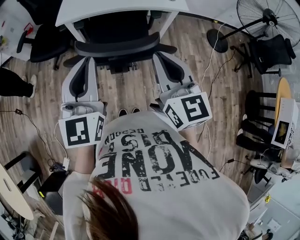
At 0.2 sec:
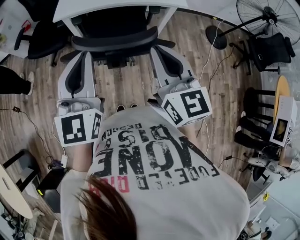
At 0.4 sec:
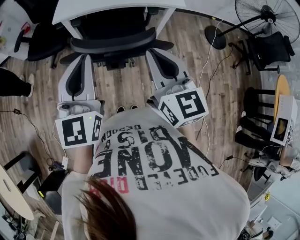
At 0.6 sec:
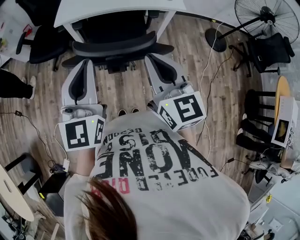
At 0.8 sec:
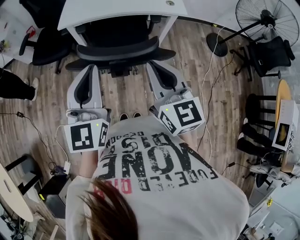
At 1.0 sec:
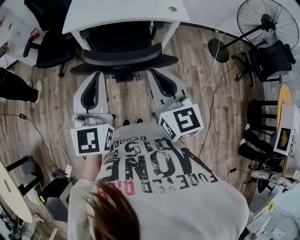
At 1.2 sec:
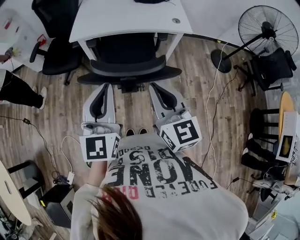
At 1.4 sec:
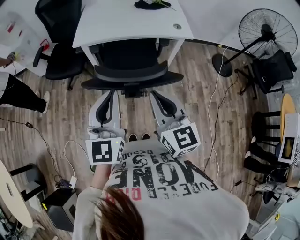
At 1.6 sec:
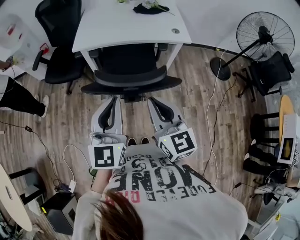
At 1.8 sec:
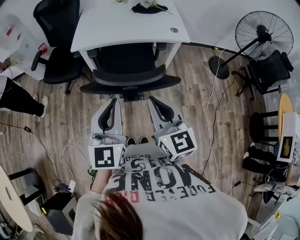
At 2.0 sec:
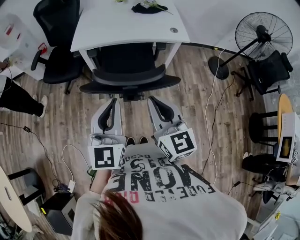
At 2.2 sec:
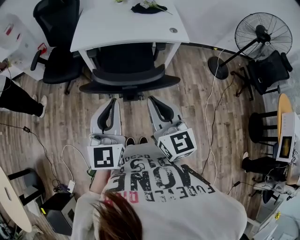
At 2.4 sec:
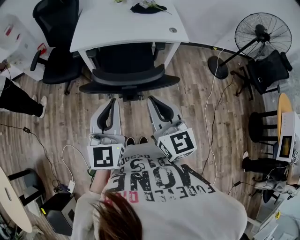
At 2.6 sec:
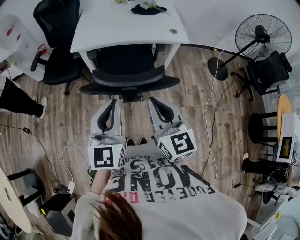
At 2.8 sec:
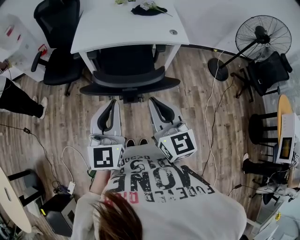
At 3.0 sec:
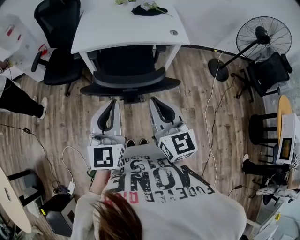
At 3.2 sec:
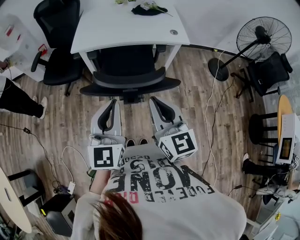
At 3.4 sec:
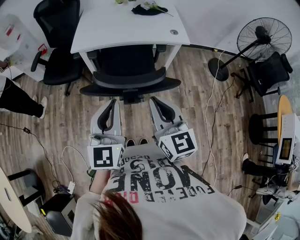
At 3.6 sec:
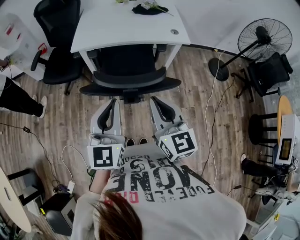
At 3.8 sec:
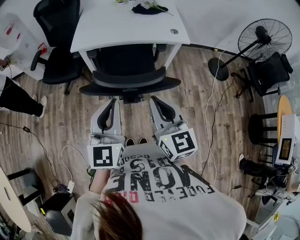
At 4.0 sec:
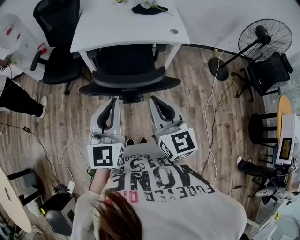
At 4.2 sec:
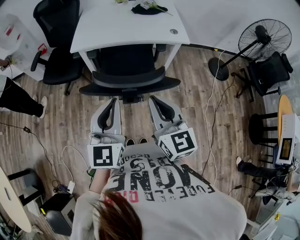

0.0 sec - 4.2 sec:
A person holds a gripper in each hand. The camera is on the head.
0.0 sec - 1.4 sec: The right gripper ends up roughly 5 cm from where it was.
1.4 sec - 2.8 sec: There are only small adjustments of the grippers.
2.8 sec - 4.2 sec: Both grippers stay put.

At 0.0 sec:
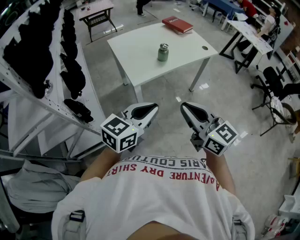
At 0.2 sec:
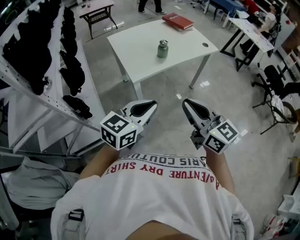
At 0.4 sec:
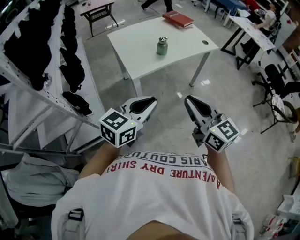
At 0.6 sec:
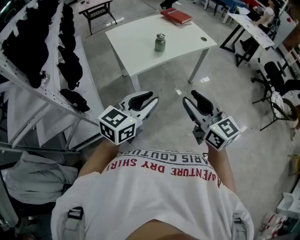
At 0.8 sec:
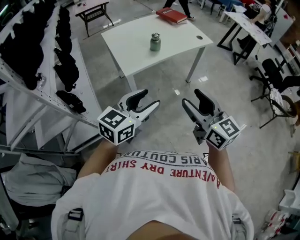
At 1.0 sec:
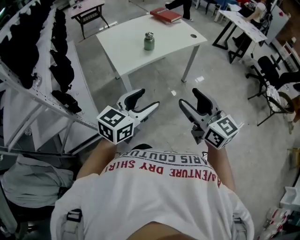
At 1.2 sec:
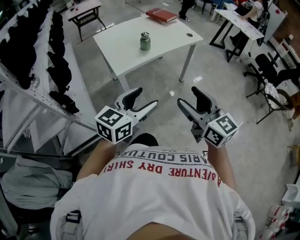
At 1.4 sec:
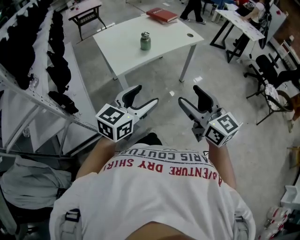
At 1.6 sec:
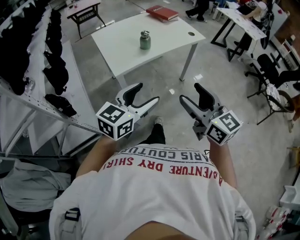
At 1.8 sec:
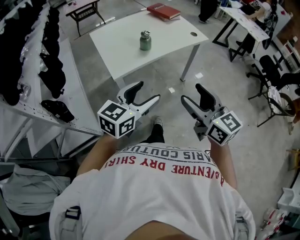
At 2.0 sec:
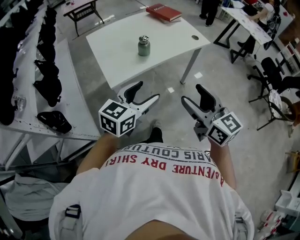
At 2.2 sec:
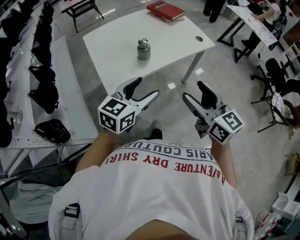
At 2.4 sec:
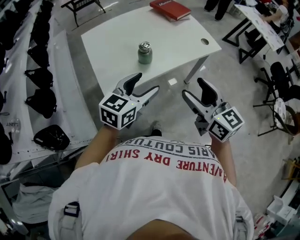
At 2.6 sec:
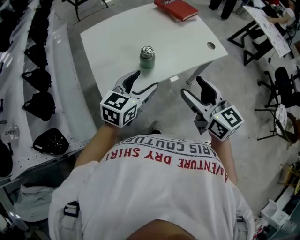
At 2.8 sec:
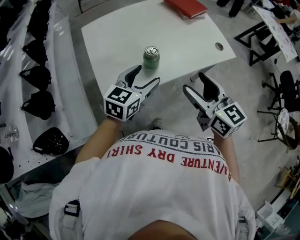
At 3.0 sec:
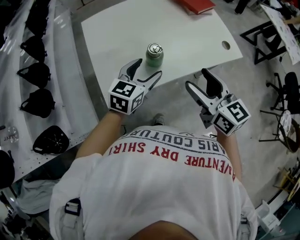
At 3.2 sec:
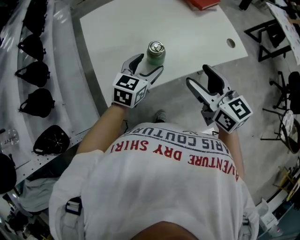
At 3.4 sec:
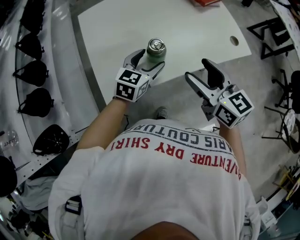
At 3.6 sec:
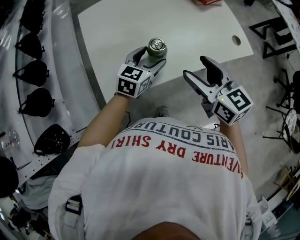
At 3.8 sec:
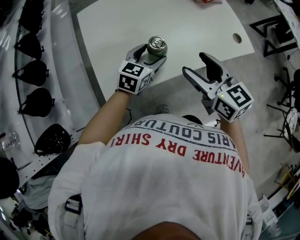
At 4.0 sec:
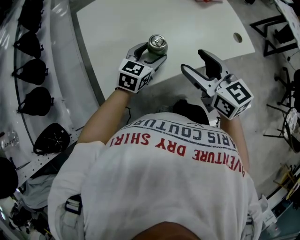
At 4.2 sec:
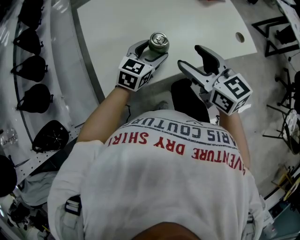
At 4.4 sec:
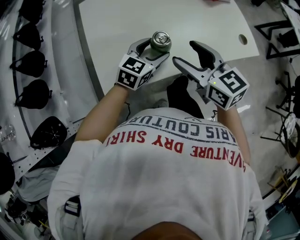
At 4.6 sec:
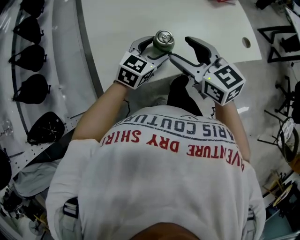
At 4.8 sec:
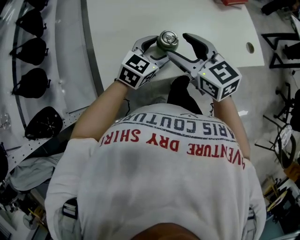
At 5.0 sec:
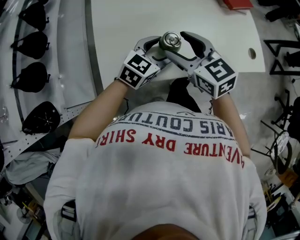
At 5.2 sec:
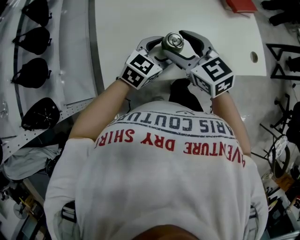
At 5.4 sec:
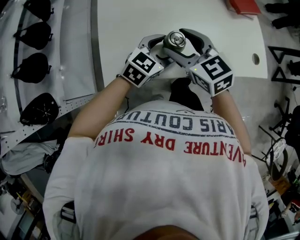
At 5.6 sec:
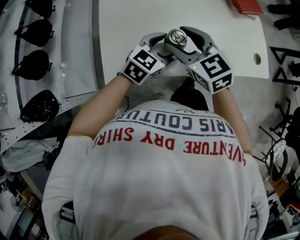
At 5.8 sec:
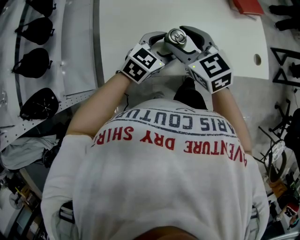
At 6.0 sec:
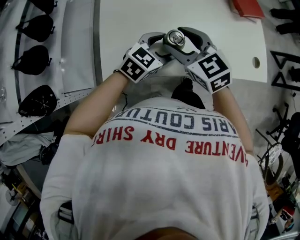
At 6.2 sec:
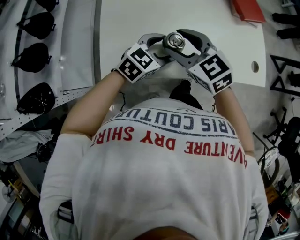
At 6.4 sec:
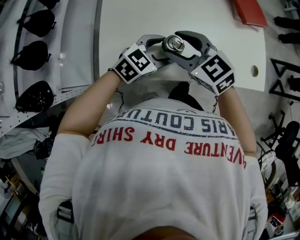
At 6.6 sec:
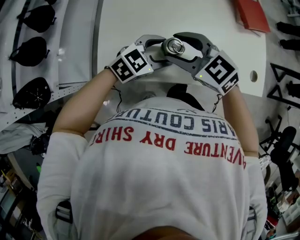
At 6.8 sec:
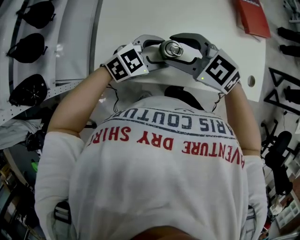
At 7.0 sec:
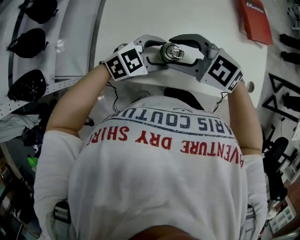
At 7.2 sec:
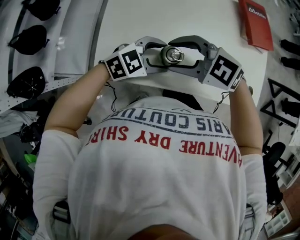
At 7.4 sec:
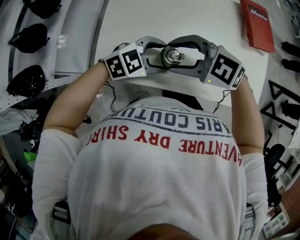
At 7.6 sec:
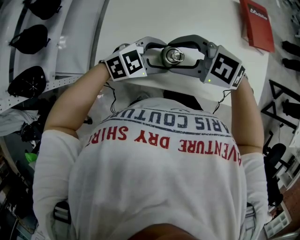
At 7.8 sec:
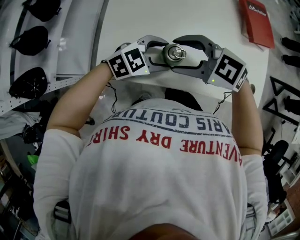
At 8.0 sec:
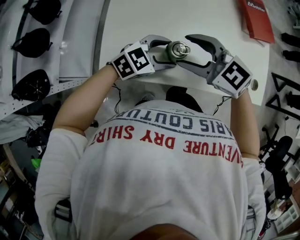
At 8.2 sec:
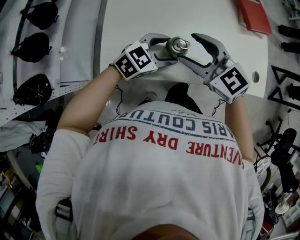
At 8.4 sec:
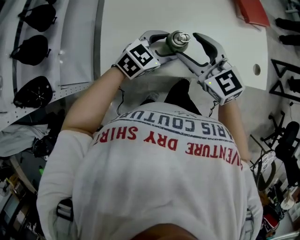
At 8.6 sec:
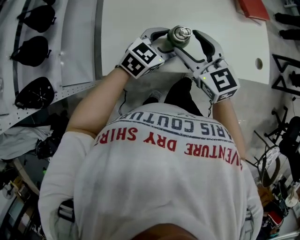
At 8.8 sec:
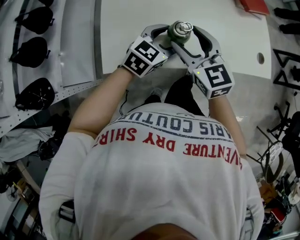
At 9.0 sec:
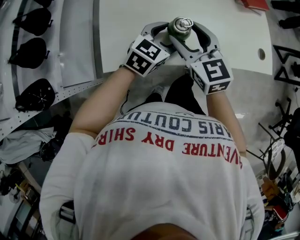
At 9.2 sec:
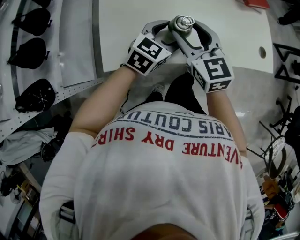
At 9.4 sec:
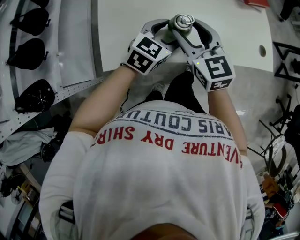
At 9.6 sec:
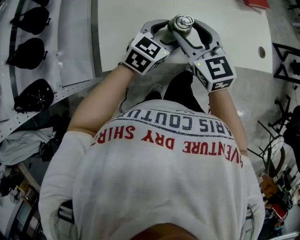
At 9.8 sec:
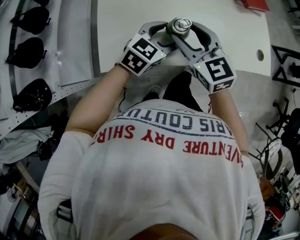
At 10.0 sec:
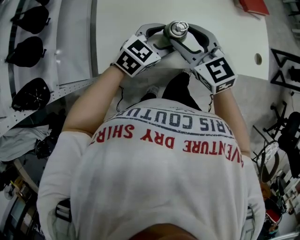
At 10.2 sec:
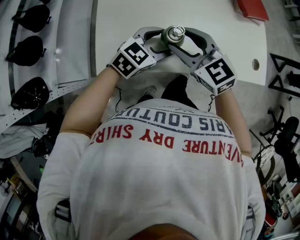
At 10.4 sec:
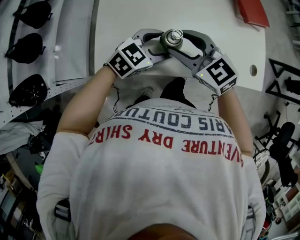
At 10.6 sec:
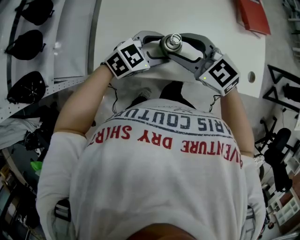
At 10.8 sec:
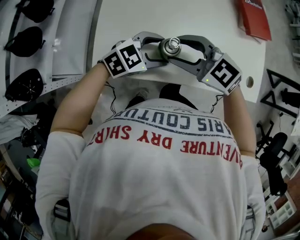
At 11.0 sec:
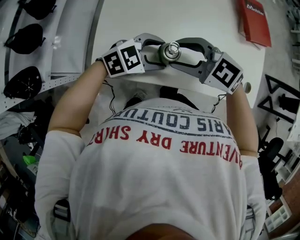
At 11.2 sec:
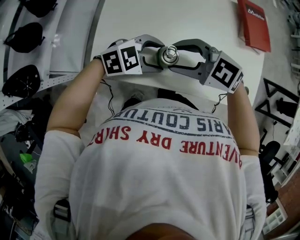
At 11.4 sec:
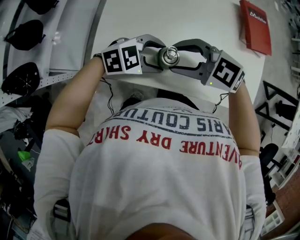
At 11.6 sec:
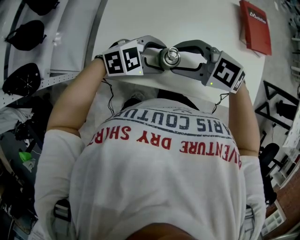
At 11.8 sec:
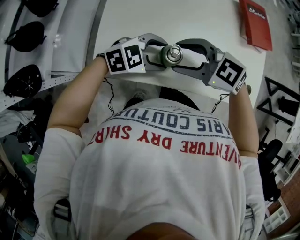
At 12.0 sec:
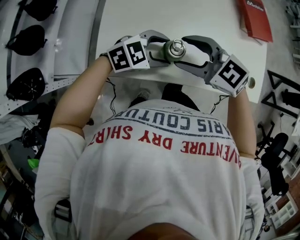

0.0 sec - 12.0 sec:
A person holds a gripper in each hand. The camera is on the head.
0.0 sec - 1.6 sec: The two grippers go roughly 10 cm to the right. The right gripper opens its fingers, while the left gripper opens.
1.6 sec - 3.0 sec: The grippers both shift forward by roughly 40 cm. The left gripper changes its angle by roughly 20 degrees.
3.0 sec - 4.4 sec: The right gripper shifts approximately 10 cm forward and to the left, while the left gripper moves downward and forward, some 10 cm.
4.4 sec - 6.0 sec: The right gripper shifts some 5 cm to the left, and rotates some 30 degrees.
6.0 sec - 7.6 sec: The right gripper changes its angle by some 50 degrees.
7.6 sec - 9.0 sec: The left gripper changes its angle by roughly 20 degrees. Meanwhile the right gripper rotates approximately 70 degrees.
9.0 sec - 10.4 sec: The right gripper rotates approximately 30 degrees.

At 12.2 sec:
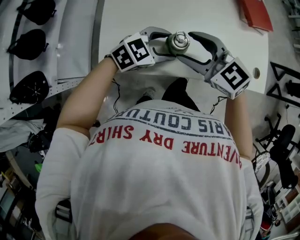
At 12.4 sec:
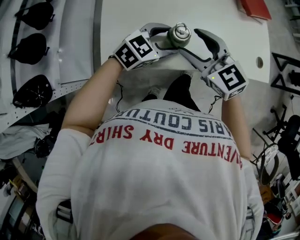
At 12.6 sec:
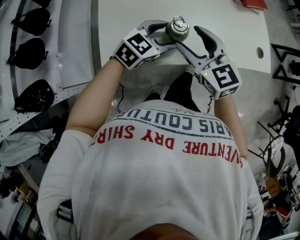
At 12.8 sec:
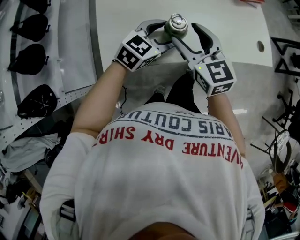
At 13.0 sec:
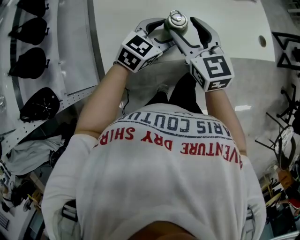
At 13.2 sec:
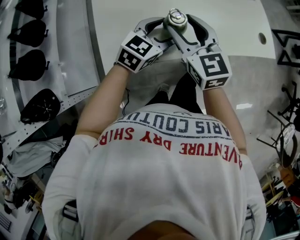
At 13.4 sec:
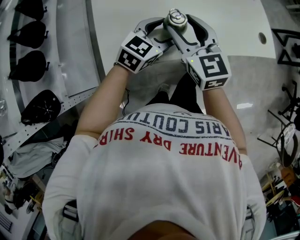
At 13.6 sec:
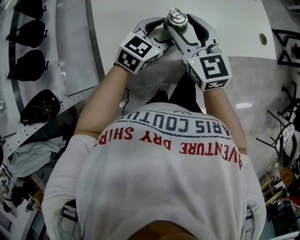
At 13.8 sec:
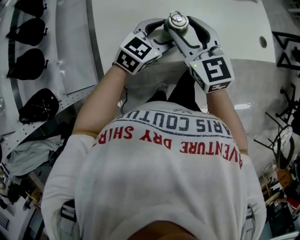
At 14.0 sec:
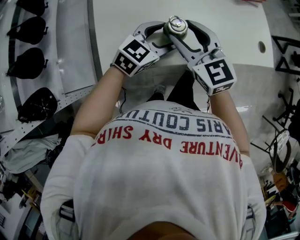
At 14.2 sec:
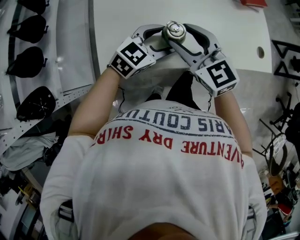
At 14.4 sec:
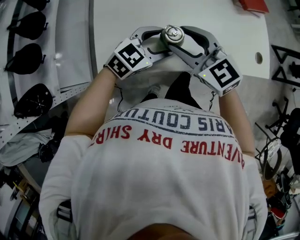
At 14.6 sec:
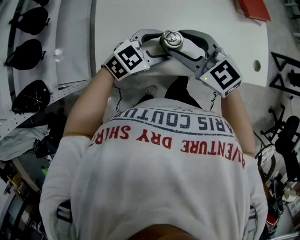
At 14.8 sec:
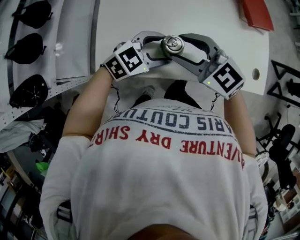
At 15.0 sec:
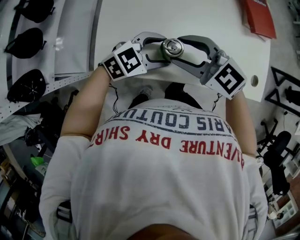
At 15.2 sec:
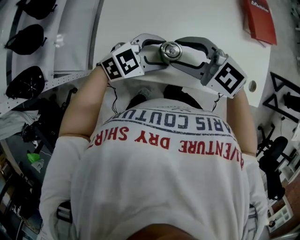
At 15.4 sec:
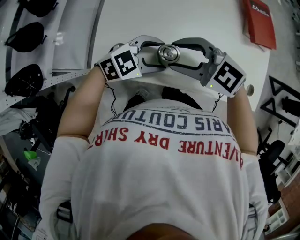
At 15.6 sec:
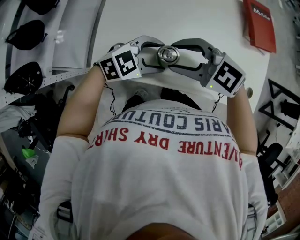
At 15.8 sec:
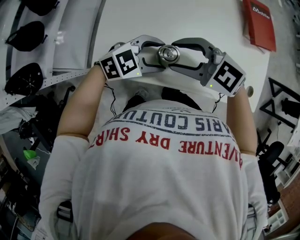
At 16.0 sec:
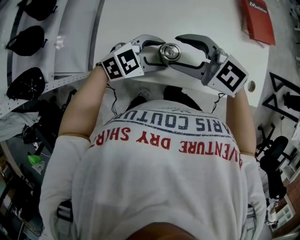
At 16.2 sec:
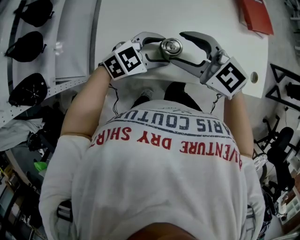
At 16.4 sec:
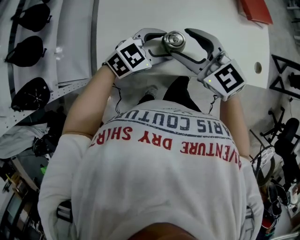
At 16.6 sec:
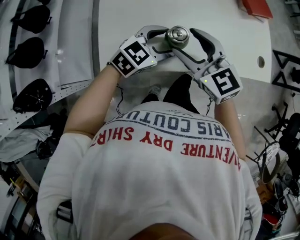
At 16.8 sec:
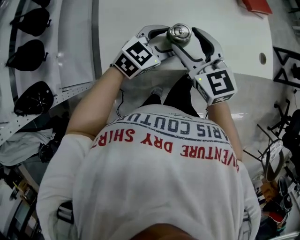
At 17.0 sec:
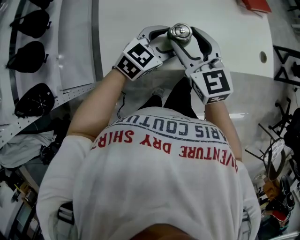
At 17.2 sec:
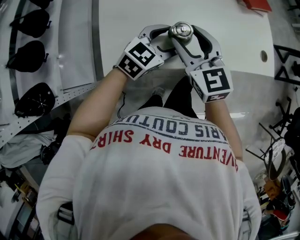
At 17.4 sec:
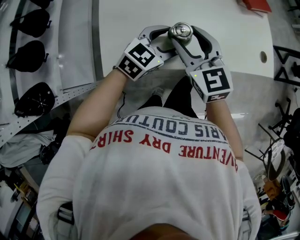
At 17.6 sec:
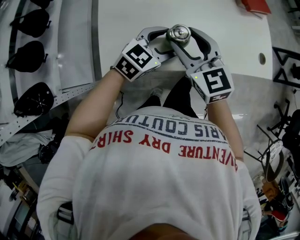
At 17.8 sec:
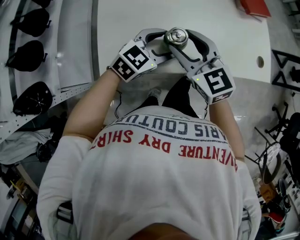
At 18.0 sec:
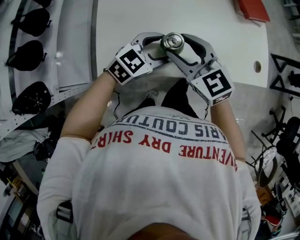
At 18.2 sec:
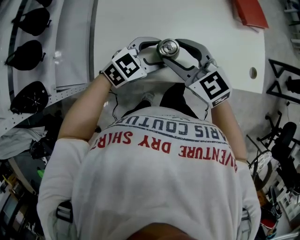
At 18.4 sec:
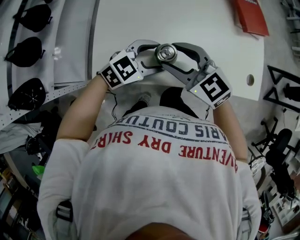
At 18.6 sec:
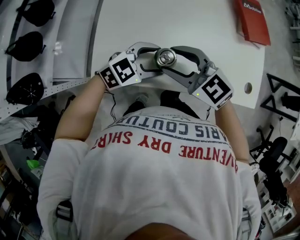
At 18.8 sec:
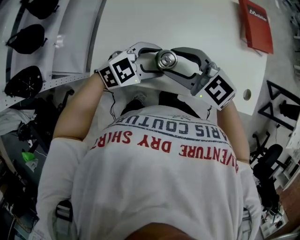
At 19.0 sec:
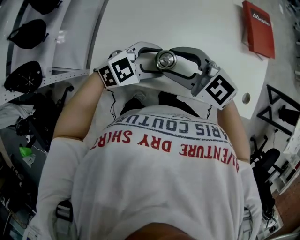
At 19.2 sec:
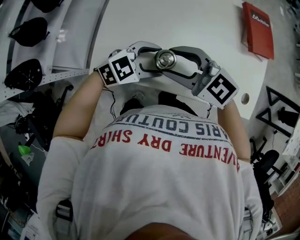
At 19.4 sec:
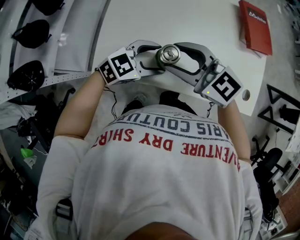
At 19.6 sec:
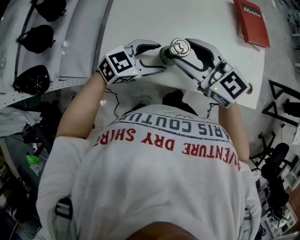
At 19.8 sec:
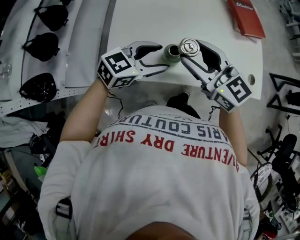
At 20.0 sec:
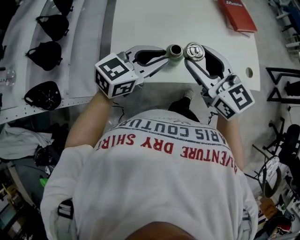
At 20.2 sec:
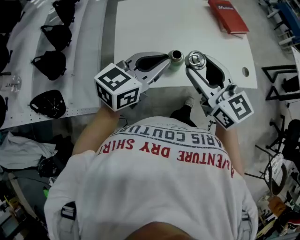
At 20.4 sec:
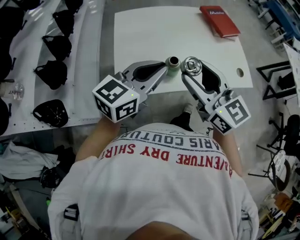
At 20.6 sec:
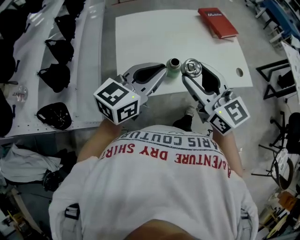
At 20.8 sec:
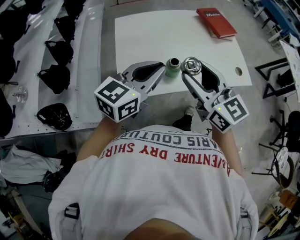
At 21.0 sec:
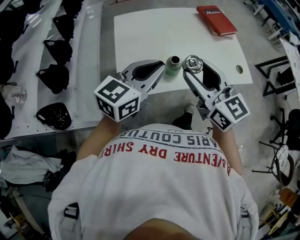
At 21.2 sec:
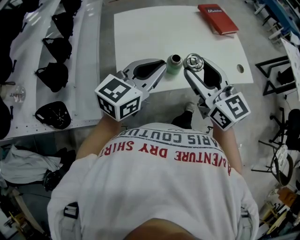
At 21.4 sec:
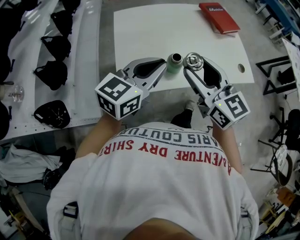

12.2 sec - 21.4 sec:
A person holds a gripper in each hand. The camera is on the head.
12.2 sec - 13.8 sec: The right gripper swivels roughly 40 degrees.
13.8 sec - 15.2 sec: The right gripper swivels roughly 60 degrees.
15.2 sec - 16.8 sec: The right gripper rotates roughly 50 degrees.
16.8 sec - 18.4 sec: The right gripper turns by approximately 30 degrees.
18.4 sec - 19.8 sec: Both grippers travel together upward, about 10 cm.
19.8 sec - 21.4 sec: The right gripper heads backward and upward, covering some 10 cm, and rotates about 20 degrees. The left gripper moves upward, roughly 15 cm, and closes.
